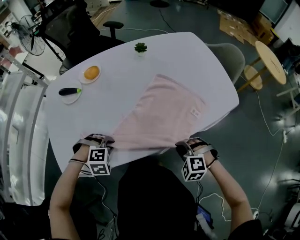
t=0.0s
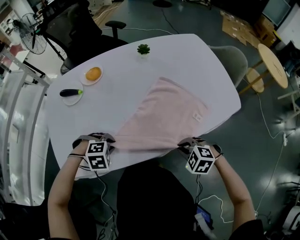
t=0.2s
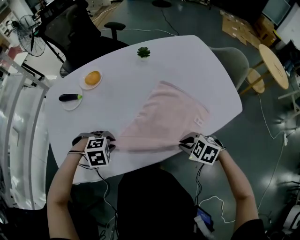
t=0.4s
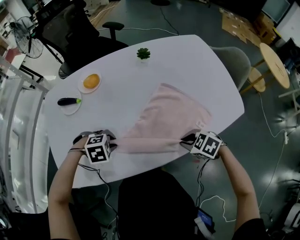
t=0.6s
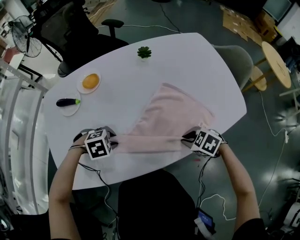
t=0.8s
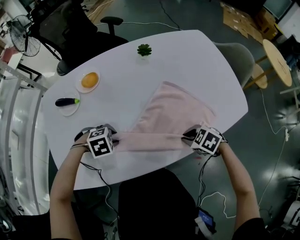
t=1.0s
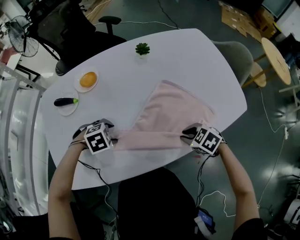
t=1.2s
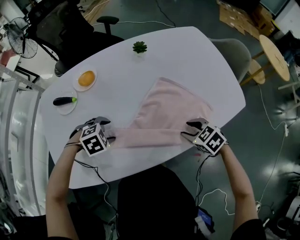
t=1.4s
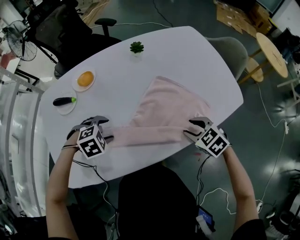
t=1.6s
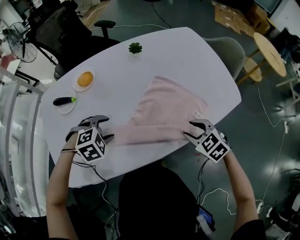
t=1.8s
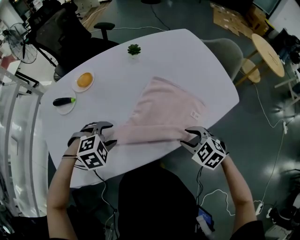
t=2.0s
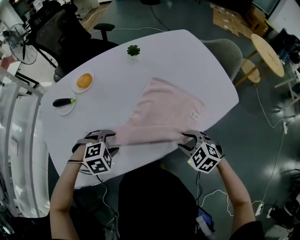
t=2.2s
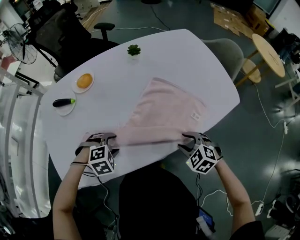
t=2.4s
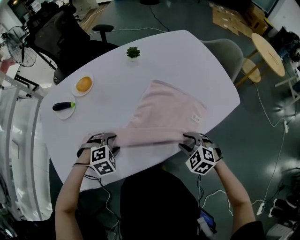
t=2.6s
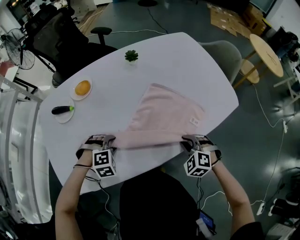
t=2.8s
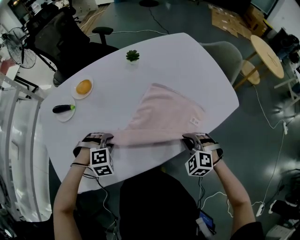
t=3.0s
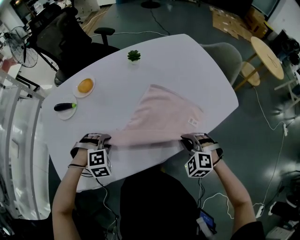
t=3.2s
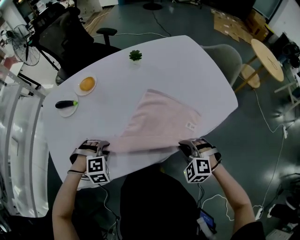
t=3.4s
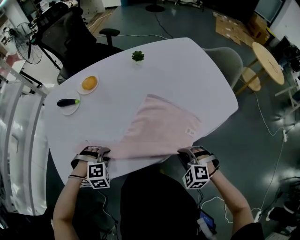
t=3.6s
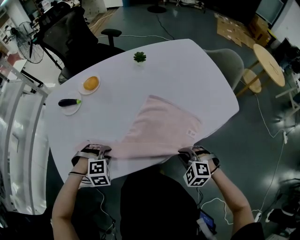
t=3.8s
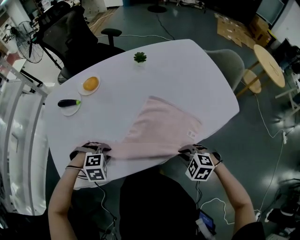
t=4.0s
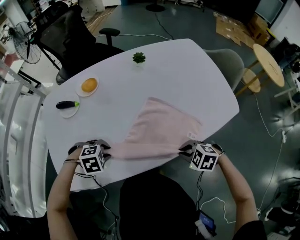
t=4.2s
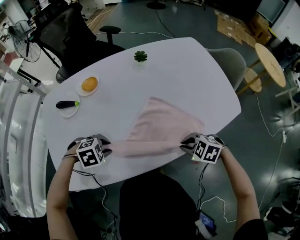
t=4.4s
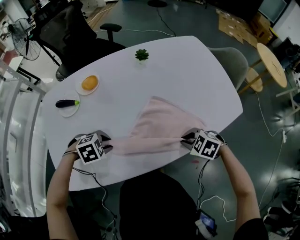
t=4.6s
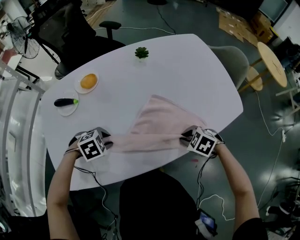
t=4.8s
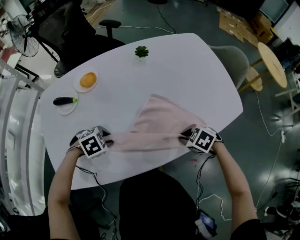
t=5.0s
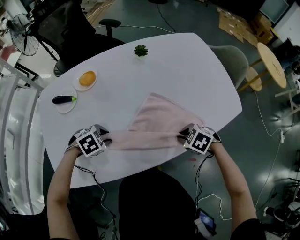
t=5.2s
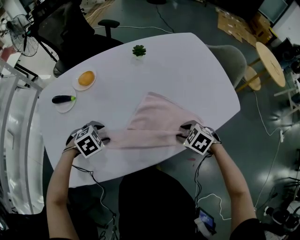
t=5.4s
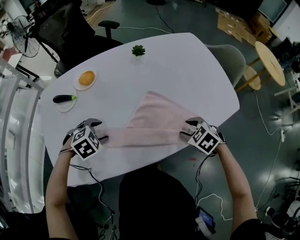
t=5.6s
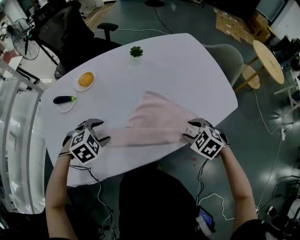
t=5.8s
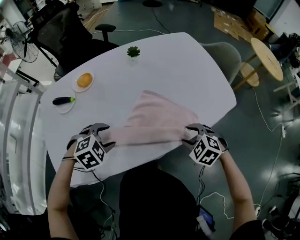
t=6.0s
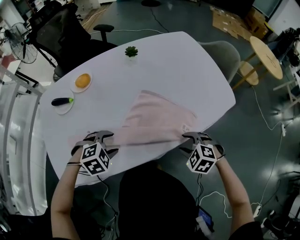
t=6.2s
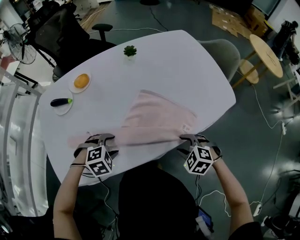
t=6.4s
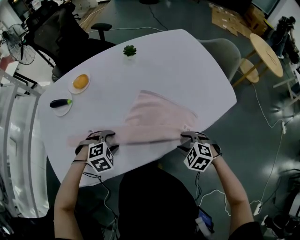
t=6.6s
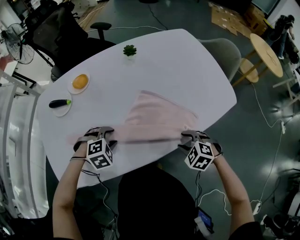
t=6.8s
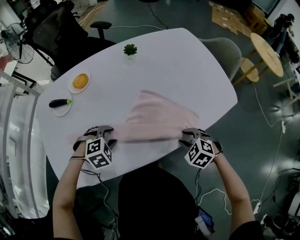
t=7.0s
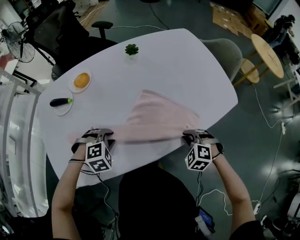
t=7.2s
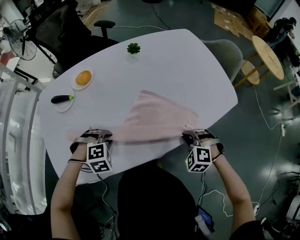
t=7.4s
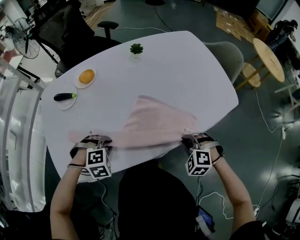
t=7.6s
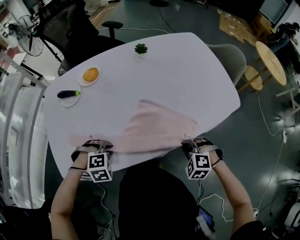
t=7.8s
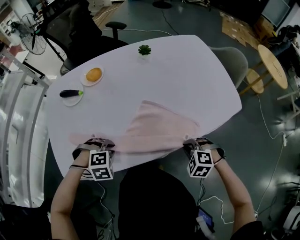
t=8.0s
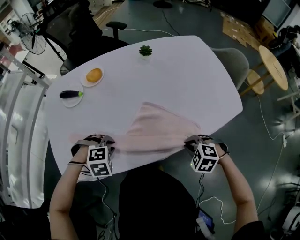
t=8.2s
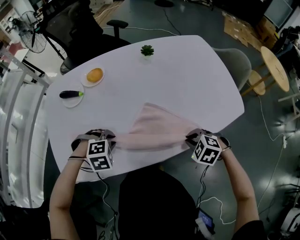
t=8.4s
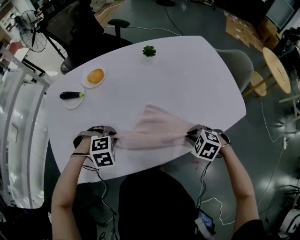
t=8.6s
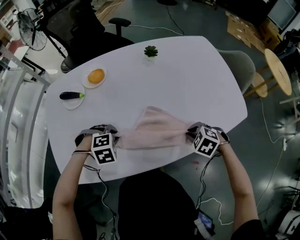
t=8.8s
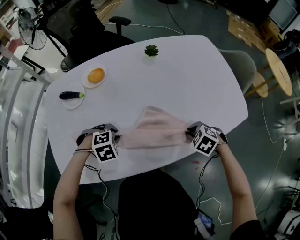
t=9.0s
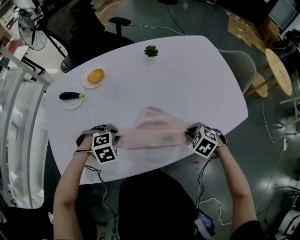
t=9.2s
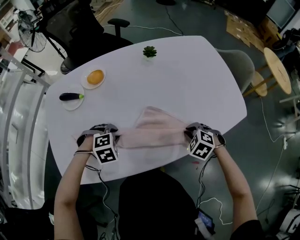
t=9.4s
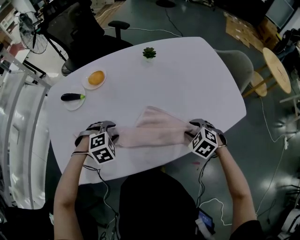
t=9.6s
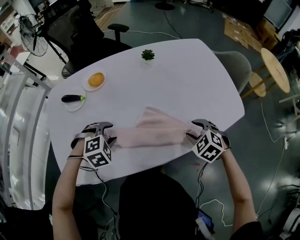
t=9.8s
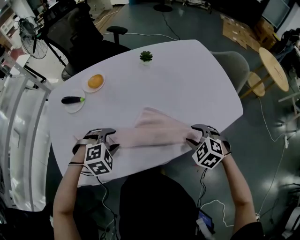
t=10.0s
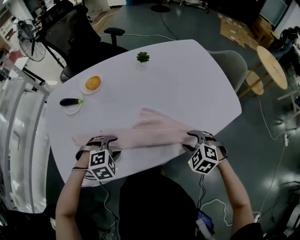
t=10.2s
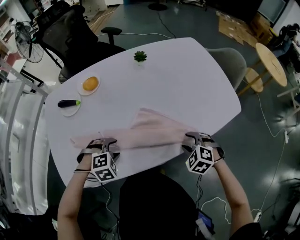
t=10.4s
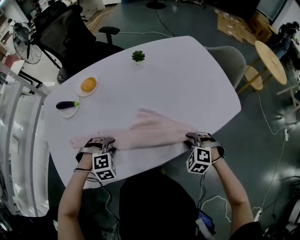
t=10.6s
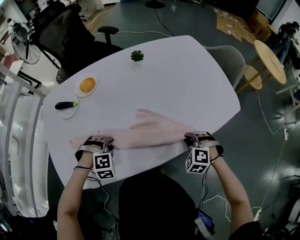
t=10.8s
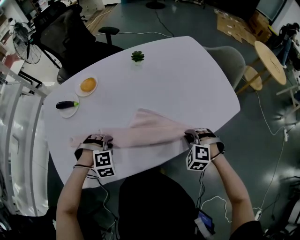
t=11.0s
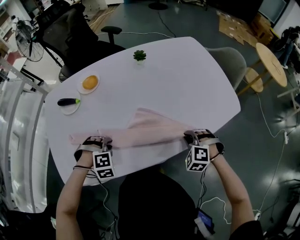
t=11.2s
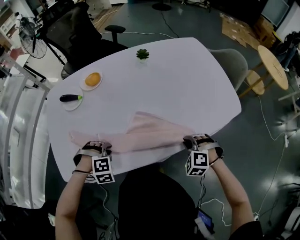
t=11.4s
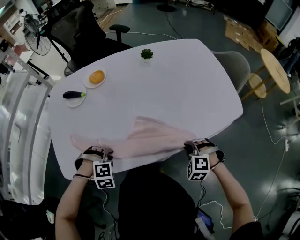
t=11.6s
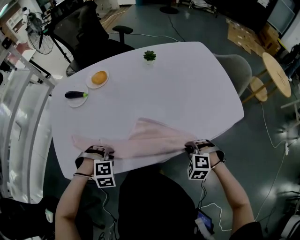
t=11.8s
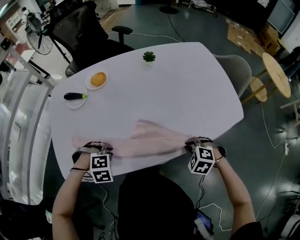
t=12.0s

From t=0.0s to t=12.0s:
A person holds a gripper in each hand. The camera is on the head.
From t=0.0s to t=1.6s: The right gripper moves some 15 cm, rotates around the line of its fingers by some 40 degrees, clockwise from behind, and opens its fingers. The left gripper ends up about 10 cm from where it was, and opens its fingers.
From t=1.6s to t=3.0s: The right gripper rotates roughly 30 degrees, and closes; the left gripper rotates about 20 degrees, and closes up.
From t=3.0s to t=4.4s: The left gripper turns by some 30 degrees. The right gripper turns by some 40 degrees.
From t=4.4s to t=6.0s: The left gripper shifts approximately 5 cm upward, and opens its fingers. Meanwhile the right gripper opens its fingers.
From t=6.0s to t=7.6s: The left gripper travels downward and backward by about 10 cm, and closes its fingers; the right gripper rotates approximately 20 degrees, and closes its fingers.
From t=7.6s to t=9.0s: The right gripper changes place by roughly 10 cm, and turns by roughly 30 degrees, while the left gripper shifts by about 10 cm.
From t=9.0s to t=10.4s: The right gripper moves about 5 cm, and opens up, while the left gripper shifts by about 5 cm, and opens its fingers.
From t=10.4s to t=12.0s: The left gripper ends up some 5 cm from where it was, and closes its fingers; the right gripper closes its fingers.

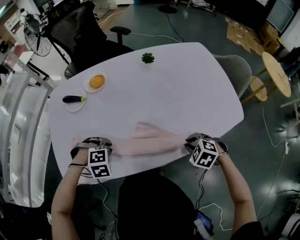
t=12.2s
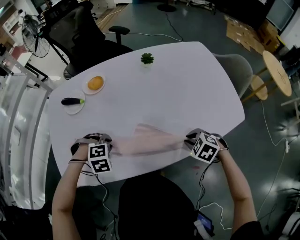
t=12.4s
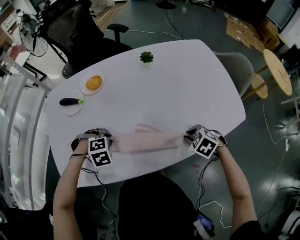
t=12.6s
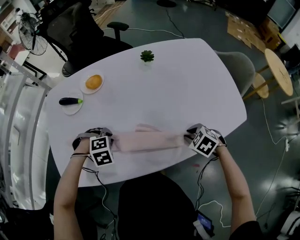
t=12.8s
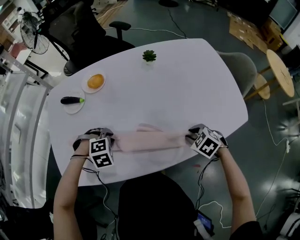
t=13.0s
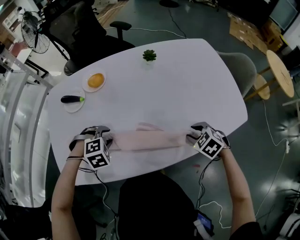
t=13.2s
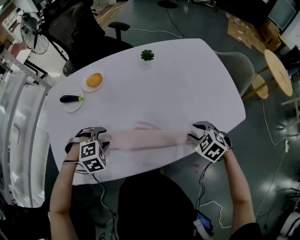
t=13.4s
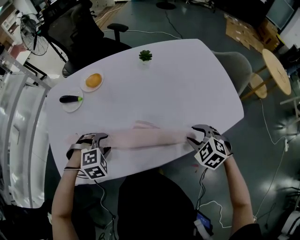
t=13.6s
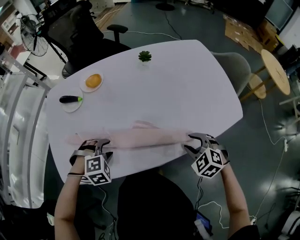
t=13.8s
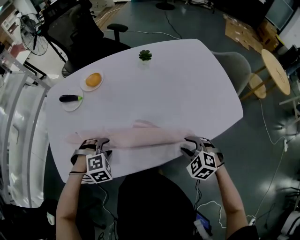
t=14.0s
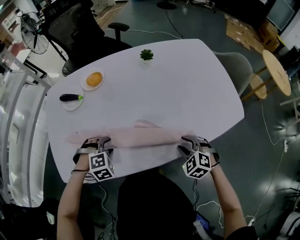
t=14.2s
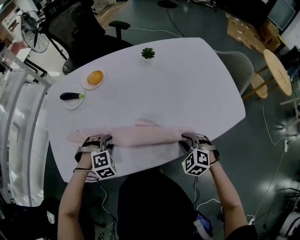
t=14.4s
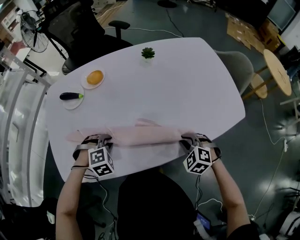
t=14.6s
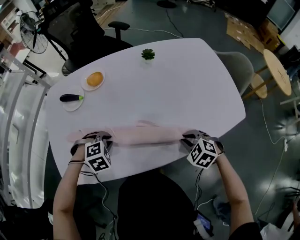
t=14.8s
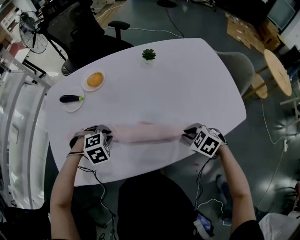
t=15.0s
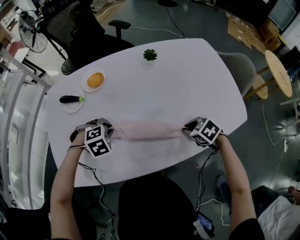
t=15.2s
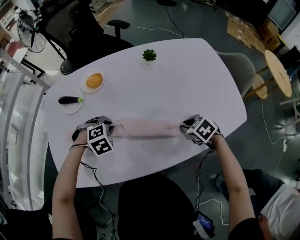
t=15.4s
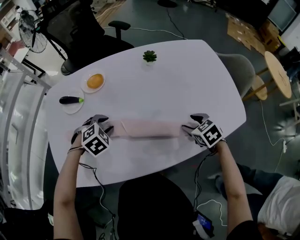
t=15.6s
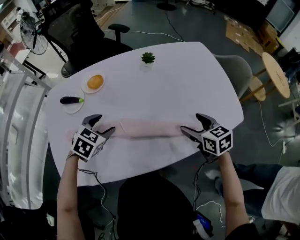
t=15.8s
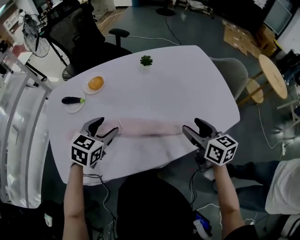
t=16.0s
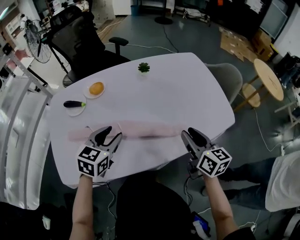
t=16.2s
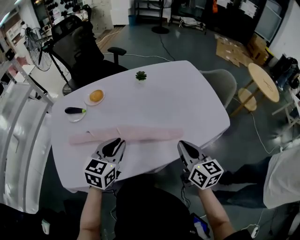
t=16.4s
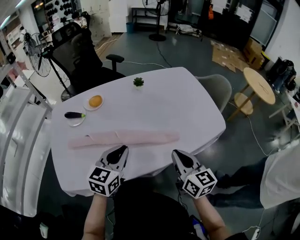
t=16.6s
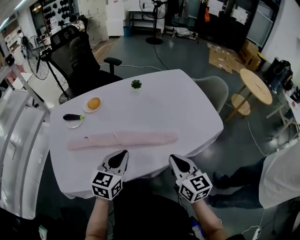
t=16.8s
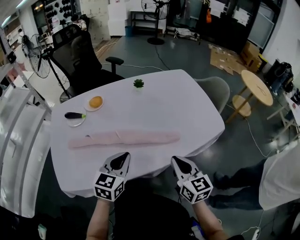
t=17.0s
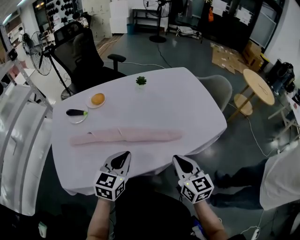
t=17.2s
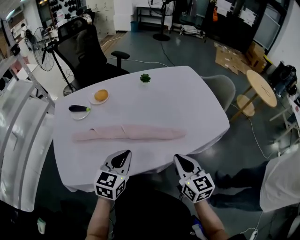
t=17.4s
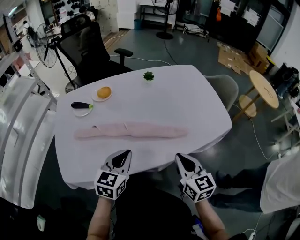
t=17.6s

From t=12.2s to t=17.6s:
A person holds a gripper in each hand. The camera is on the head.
From t=12.2s to t=13.6s: The right gripper moves some 5 cm, and opens up. Meanwhile the left gripper opens.
From t=13.6s to t=15.0s: The left gripper shifts by approximately 5 cm, and closes its fingers. Meanwhile the right gripper moves roughly 5 cm, and closes.
From t=15.0s to t=16.2s: The two grippers go about 15 cm upward. The right gripper tips its fingers upward by approximately 50 degrees, and opens its fingers; the left gripper tilts its fingers roughly 50 degrees upward, and opens up.
From t=16.2s to t=17.6s: The grippers both shift backward by some 10 cm. The left gripper closes up. The right gripper closes its fingers.

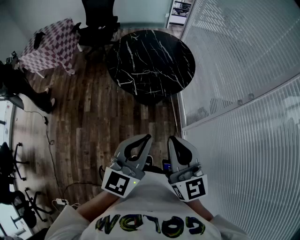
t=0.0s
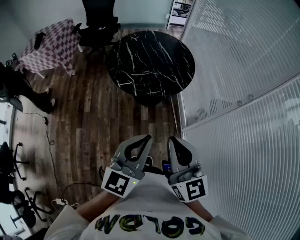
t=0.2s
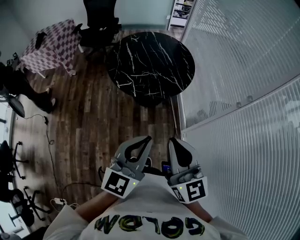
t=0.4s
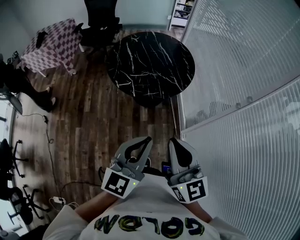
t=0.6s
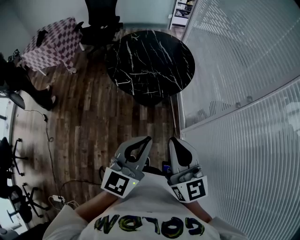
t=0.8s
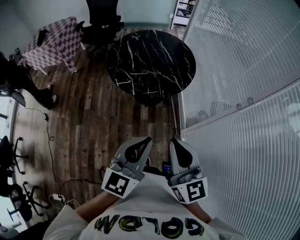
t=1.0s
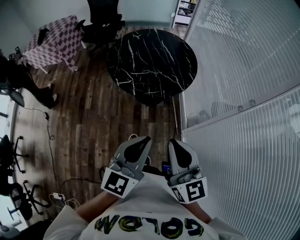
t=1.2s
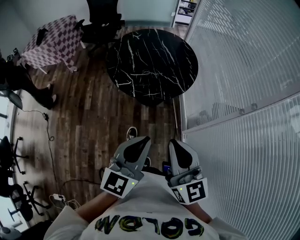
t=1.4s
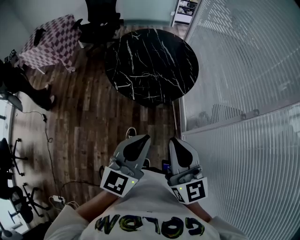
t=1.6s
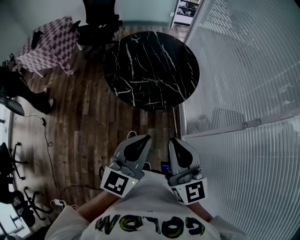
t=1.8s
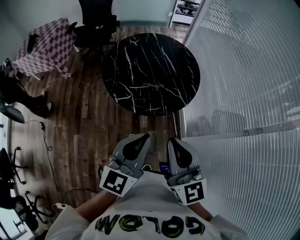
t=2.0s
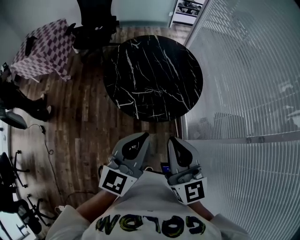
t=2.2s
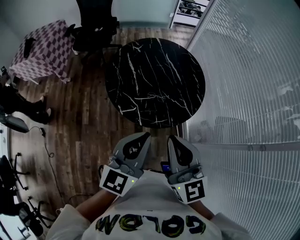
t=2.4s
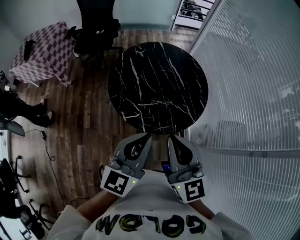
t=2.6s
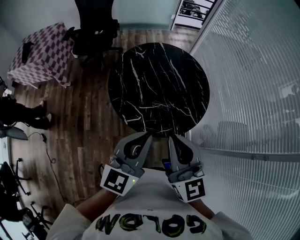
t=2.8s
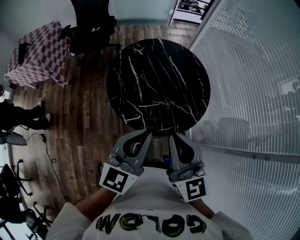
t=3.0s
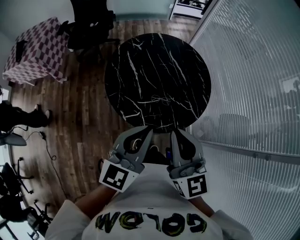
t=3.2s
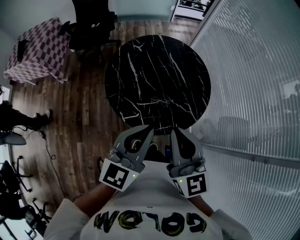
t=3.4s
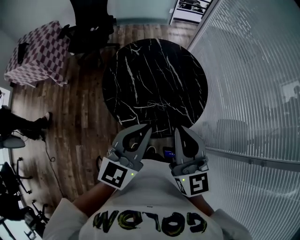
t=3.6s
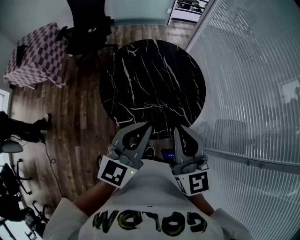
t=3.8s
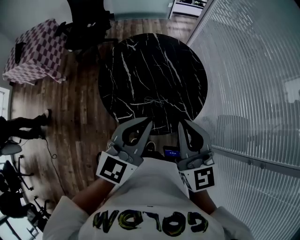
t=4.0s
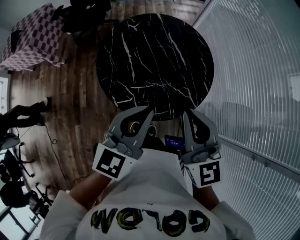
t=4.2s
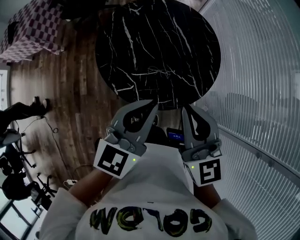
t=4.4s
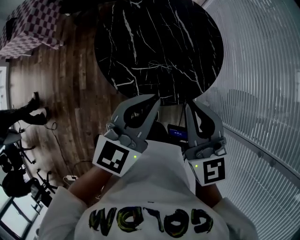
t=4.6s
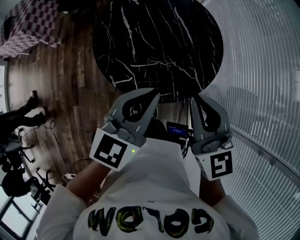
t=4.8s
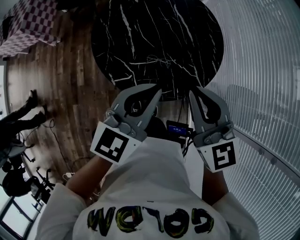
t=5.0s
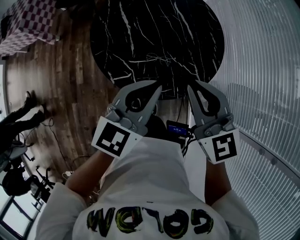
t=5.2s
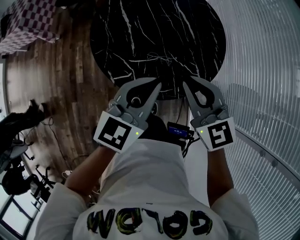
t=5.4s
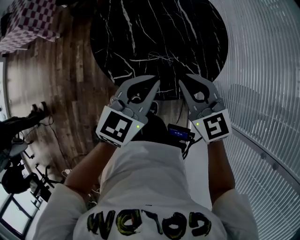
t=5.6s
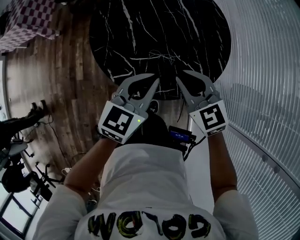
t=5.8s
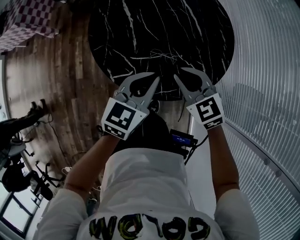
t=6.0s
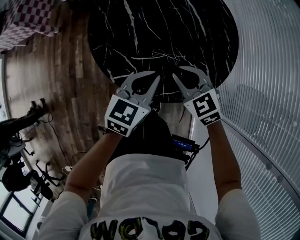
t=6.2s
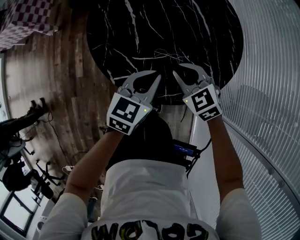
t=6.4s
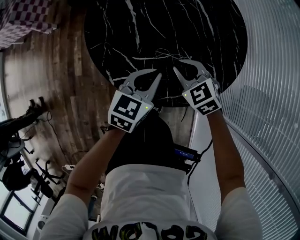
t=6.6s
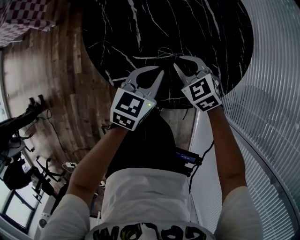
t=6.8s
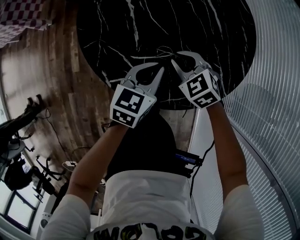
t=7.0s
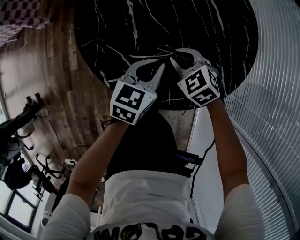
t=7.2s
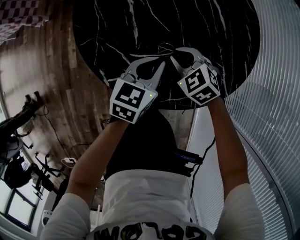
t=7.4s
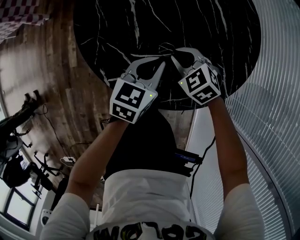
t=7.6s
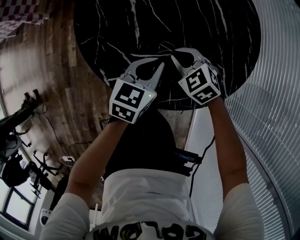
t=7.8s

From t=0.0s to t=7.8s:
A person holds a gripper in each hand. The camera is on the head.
From t=0.0s to t=1.6s: The grippers both shift forward by approximately 5 cm.
From t=1.6s to t=3.2s: The two grippers go about 30 cm forward and to the left.
From t=3.2s to t=4.6s: The right gripper shifts roughly 10 cm to the right, downward and forward. Meanwhile the left gripper travels to the right and downward by roughly 10 cm.
From t=4.6s to t=6.2s: Both grippers travel together downward, roughly 25 cm. The right gripper turns by approximately 40 degrees.
From t=6.2s to t=7.8s: Both grippers move downward and forward, approximately 15 cm.
